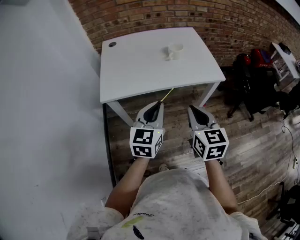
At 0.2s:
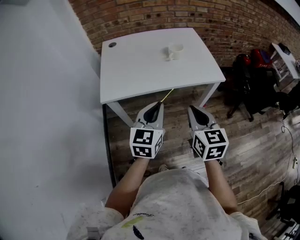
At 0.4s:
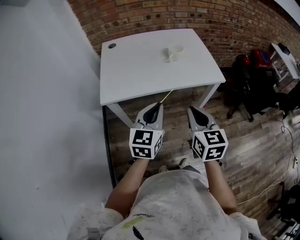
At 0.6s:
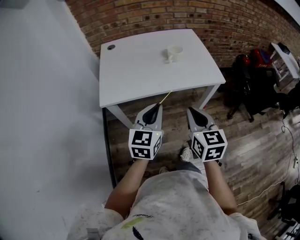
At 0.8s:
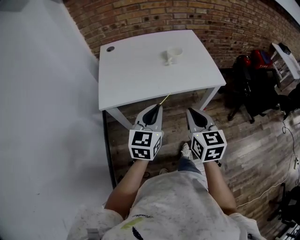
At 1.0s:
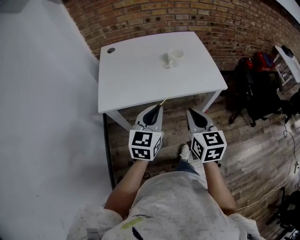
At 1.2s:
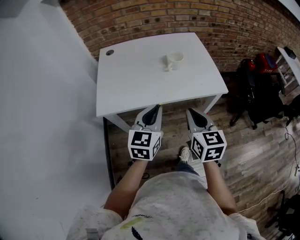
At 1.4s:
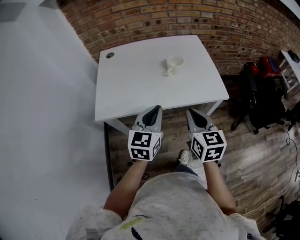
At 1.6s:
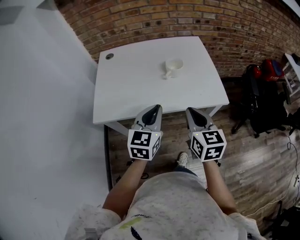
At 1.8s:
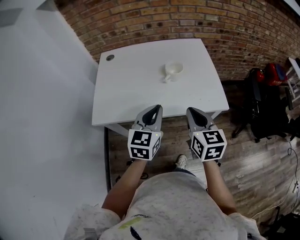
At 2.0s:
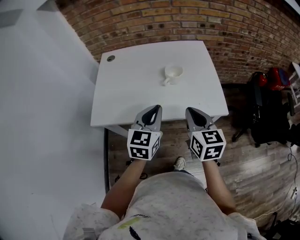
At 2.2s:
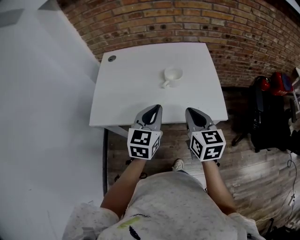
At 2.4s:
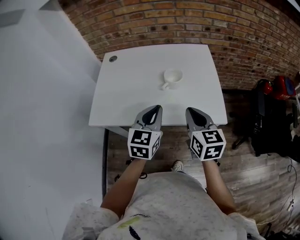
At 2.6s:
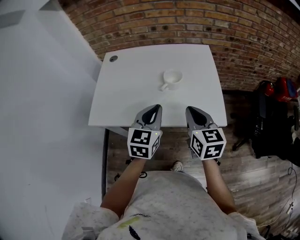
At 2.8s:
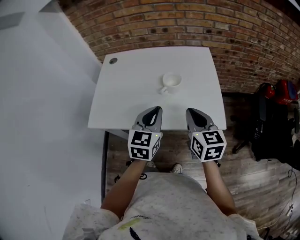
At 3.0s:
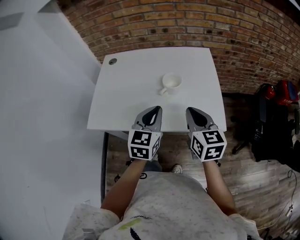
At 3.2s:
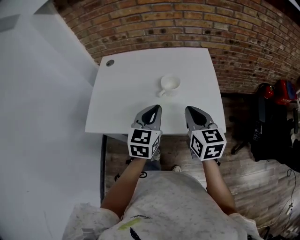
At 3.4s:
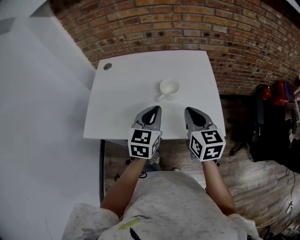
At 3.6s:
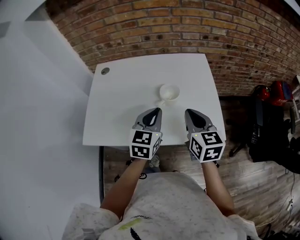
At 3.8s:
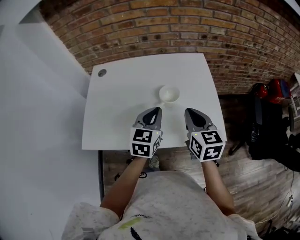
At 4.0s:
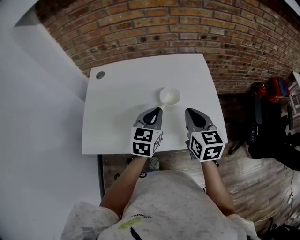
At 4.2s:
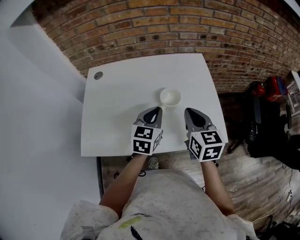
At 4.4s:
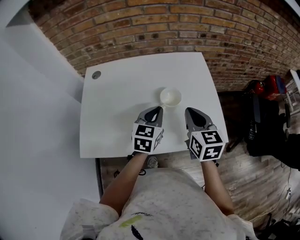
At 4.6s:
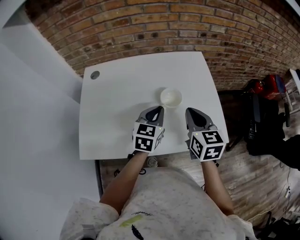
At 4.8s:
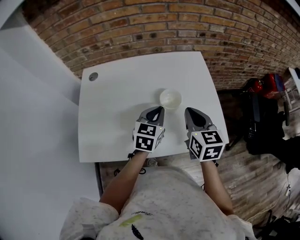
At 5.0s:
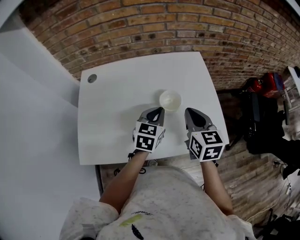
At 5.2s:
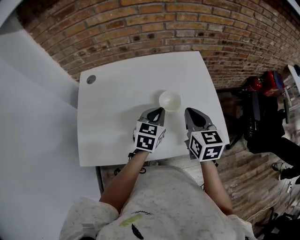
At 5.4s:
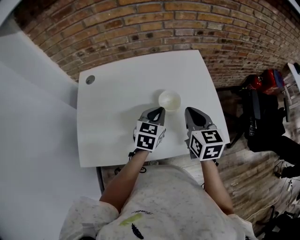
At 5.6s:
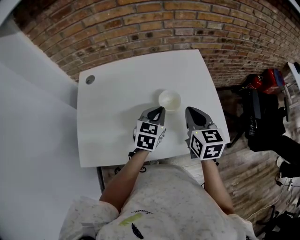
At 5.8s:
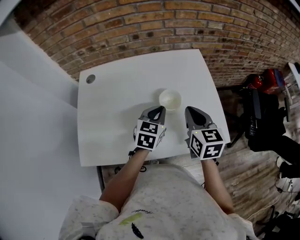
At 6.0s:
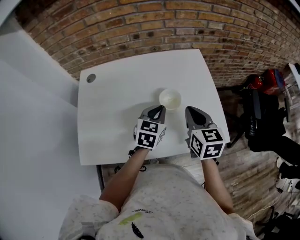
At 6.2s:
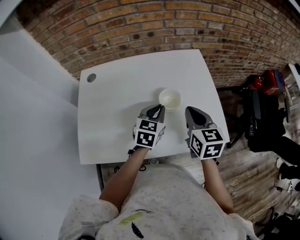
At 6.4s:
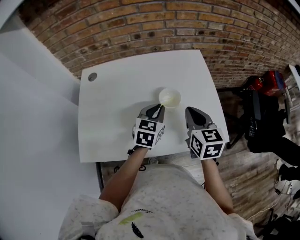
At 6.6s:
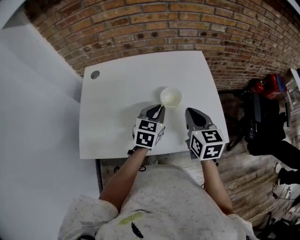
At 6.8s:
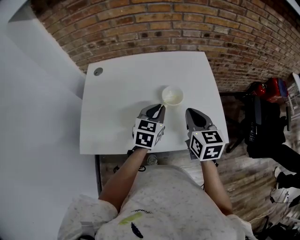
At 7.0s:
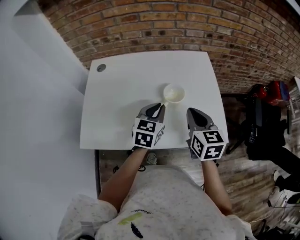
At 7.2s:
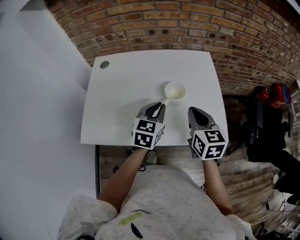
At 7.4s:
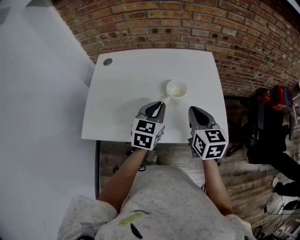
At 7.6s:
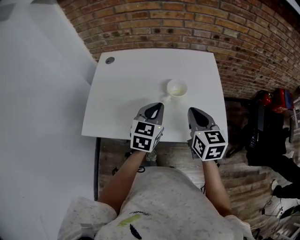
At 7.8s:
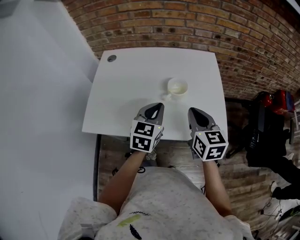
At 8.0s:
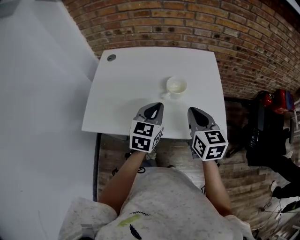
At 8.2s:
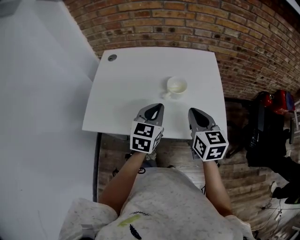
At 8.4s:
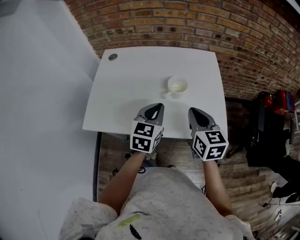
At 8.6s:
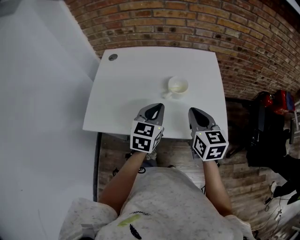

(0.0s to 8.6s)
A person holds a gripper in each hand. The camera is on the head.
0.0s - 1.4s: Both grippers travel together forward, some 15 cm.
1.4s - 2.8s: Both grippers travel together forward and to the right, some 20 cm.
2.8s - 4.4s: Both grippers travel together forward, about 15 cm.
4.4s - 5.8s: The left gripper changes place by about 5 cm.
5.8s - 7.2s: Both grippers travel together backward, about 5 cm.
7.2s - 8.6s: The left gripper goes about 5 cm backward.

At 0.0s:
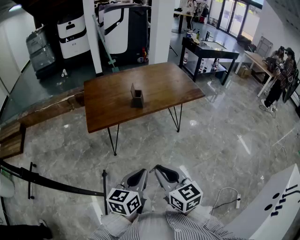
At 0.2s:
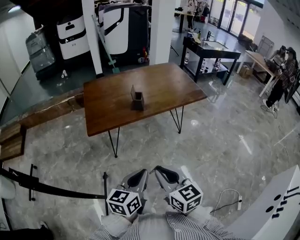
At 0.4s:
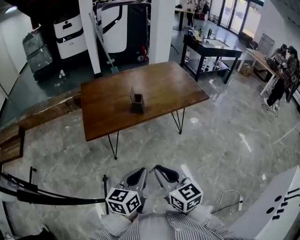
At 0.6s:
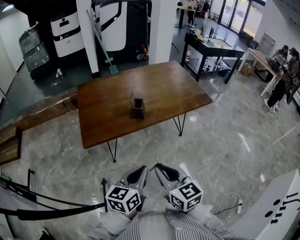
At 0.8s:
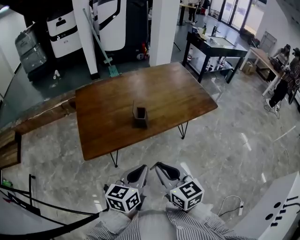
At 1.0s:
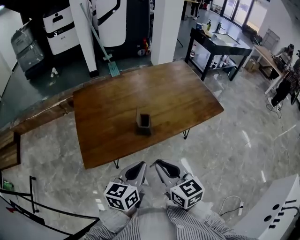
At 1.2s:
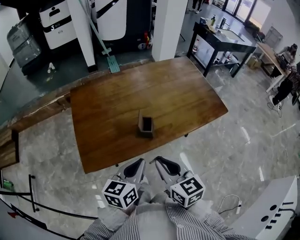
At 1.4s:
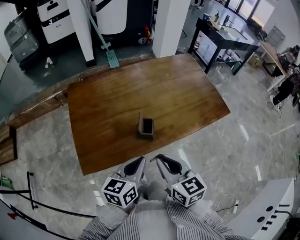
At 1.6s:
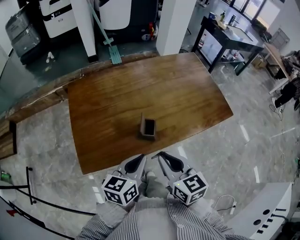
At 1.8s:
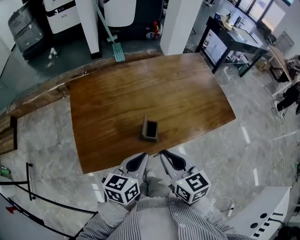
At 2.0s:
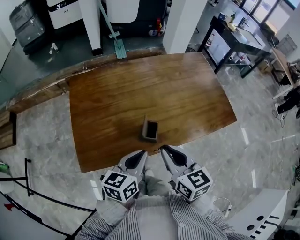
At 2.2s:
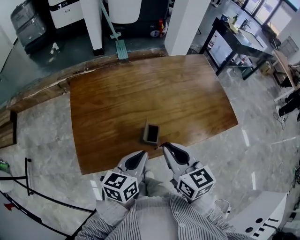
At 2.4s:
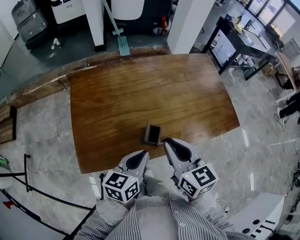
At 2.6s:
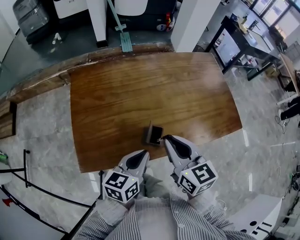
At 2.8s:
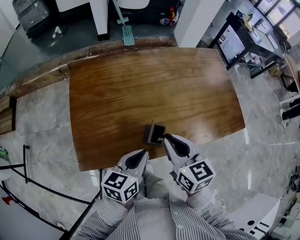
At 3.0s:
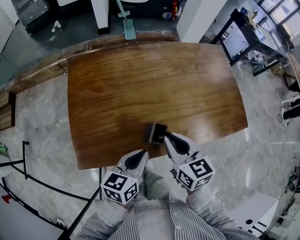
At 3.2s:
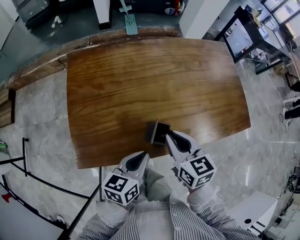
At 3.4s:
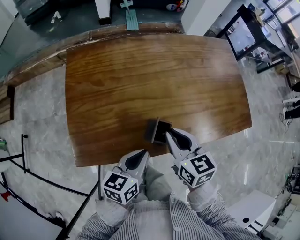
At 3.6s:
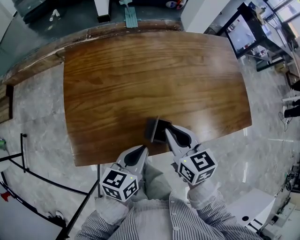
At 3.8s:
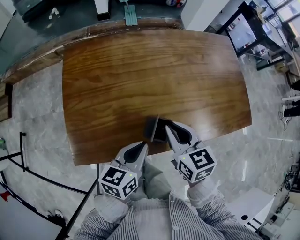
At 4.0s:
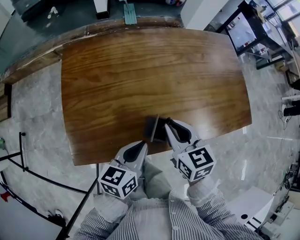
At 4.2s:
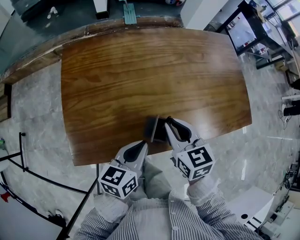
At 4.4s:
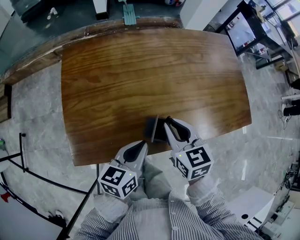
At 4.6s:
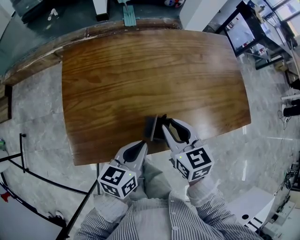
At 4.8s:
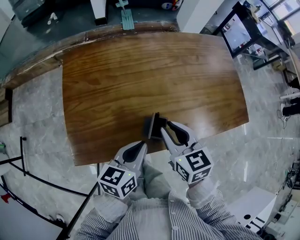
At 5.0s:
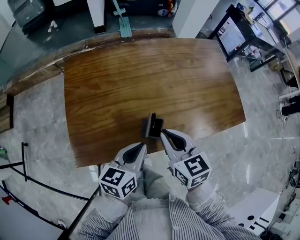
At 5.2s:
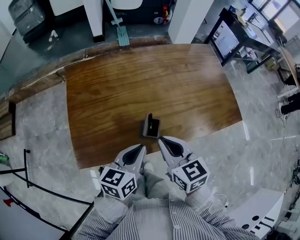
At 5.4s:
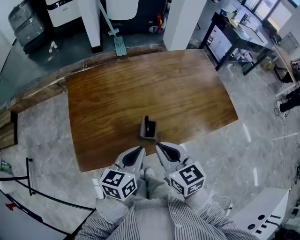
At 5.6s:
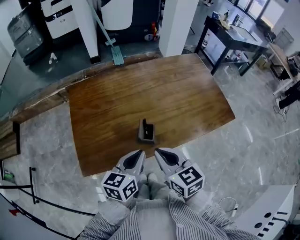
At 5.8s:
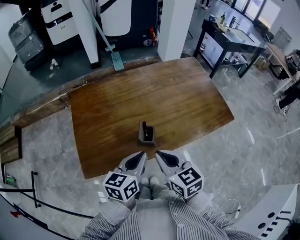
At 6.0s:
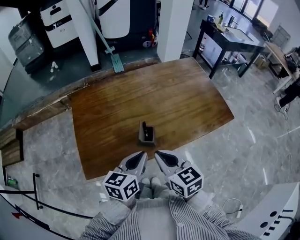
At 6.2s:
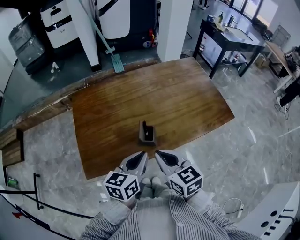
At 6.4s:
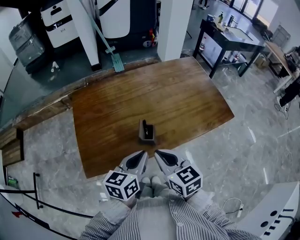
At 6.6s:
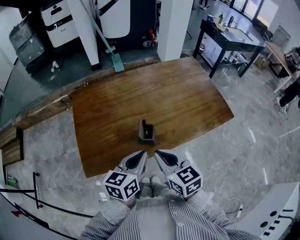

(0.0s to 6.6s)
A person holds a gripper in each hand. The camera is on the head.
0.0s - 1.6s: Both grippers move forward, some 40 cm.
1.6s - 3.2s: The right gripper heads forward and downward, covering some 15 cm. Meanwhile the left gripper travels downward by roughly 5 cm.
3.2s - 5.0s: The grippers move only a little.
5.0s - 6.6s: The right gripper goes some 10 cm backward. The left gripper moves upward, approximately 5 cm.

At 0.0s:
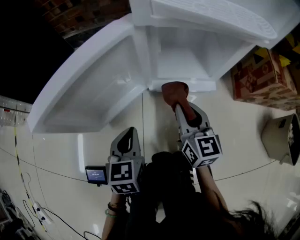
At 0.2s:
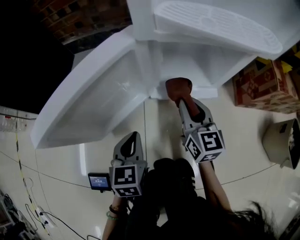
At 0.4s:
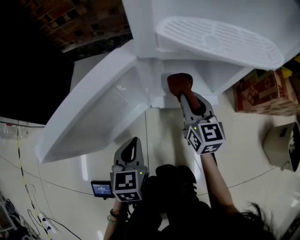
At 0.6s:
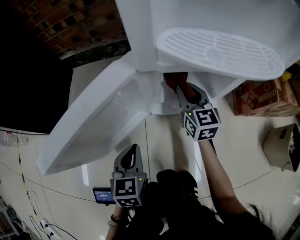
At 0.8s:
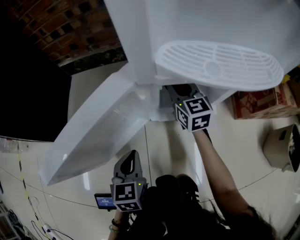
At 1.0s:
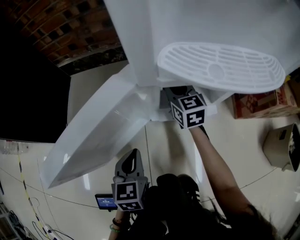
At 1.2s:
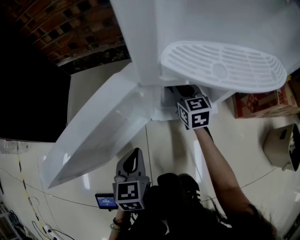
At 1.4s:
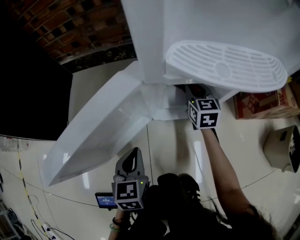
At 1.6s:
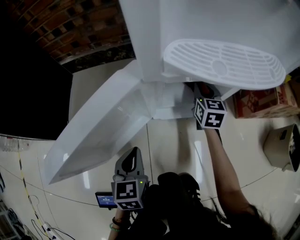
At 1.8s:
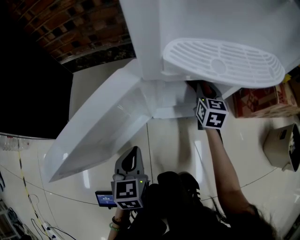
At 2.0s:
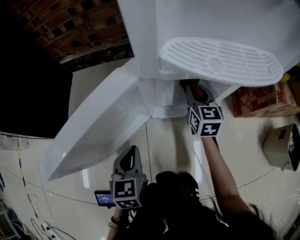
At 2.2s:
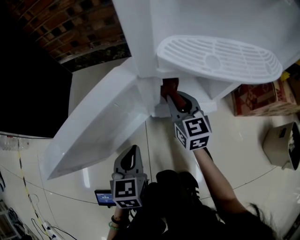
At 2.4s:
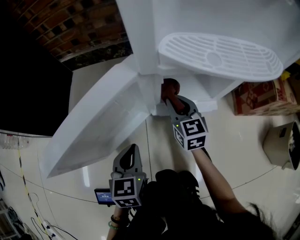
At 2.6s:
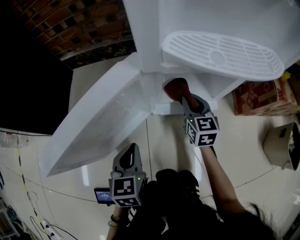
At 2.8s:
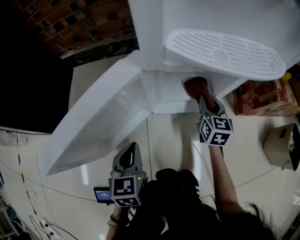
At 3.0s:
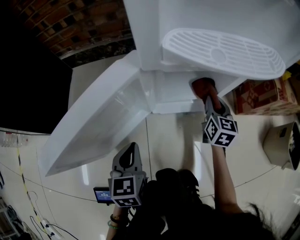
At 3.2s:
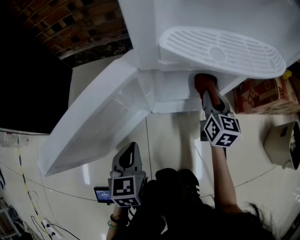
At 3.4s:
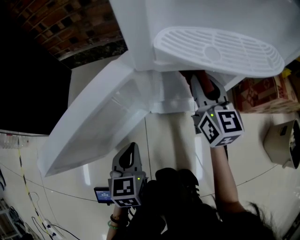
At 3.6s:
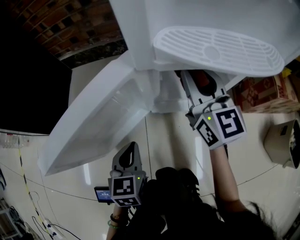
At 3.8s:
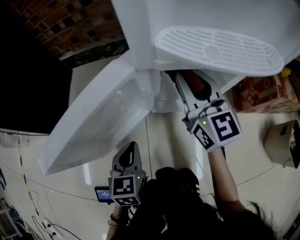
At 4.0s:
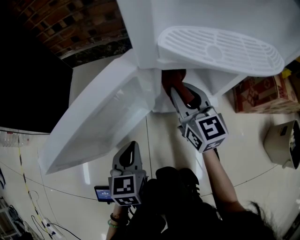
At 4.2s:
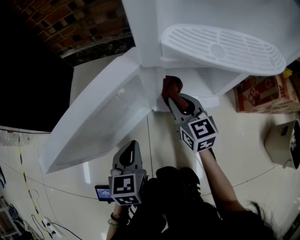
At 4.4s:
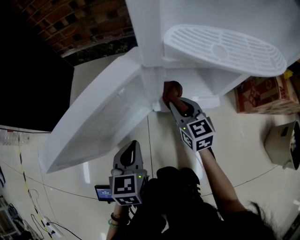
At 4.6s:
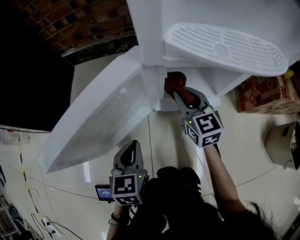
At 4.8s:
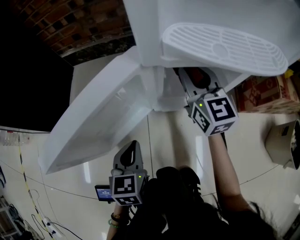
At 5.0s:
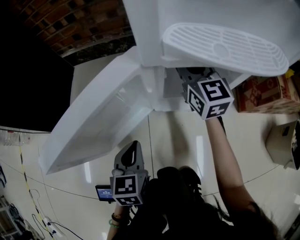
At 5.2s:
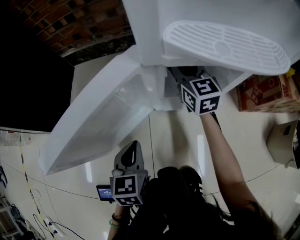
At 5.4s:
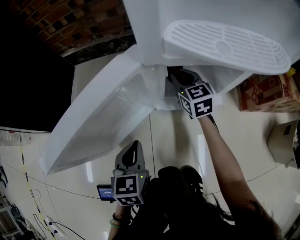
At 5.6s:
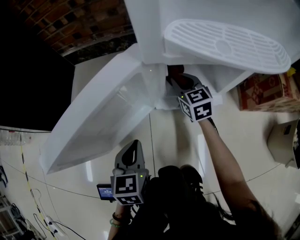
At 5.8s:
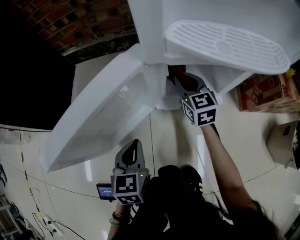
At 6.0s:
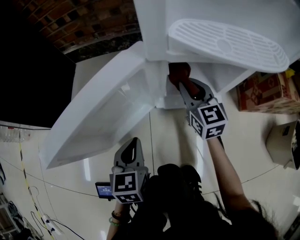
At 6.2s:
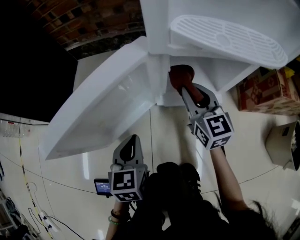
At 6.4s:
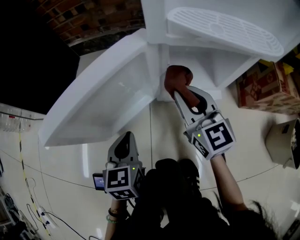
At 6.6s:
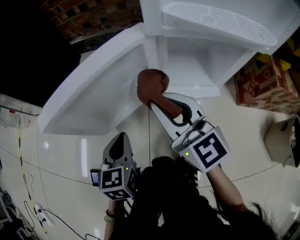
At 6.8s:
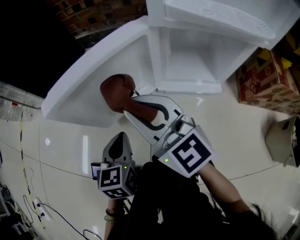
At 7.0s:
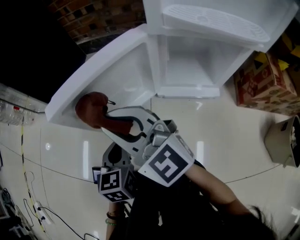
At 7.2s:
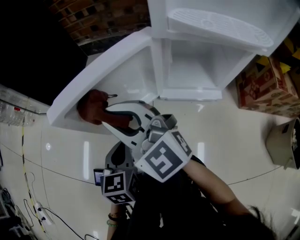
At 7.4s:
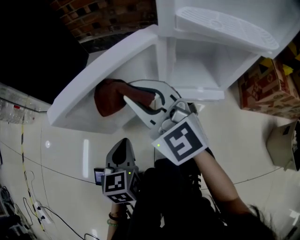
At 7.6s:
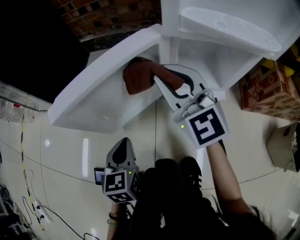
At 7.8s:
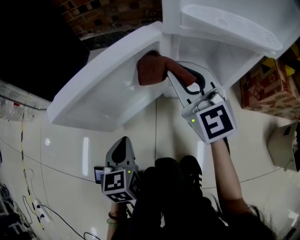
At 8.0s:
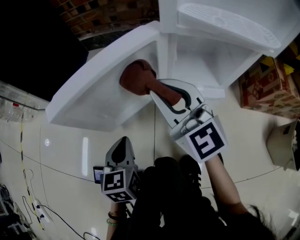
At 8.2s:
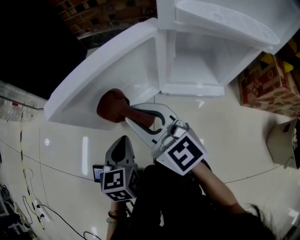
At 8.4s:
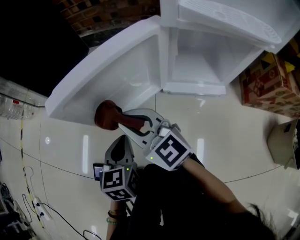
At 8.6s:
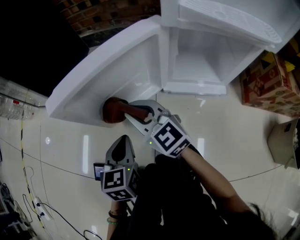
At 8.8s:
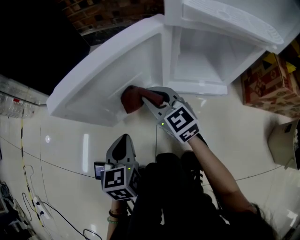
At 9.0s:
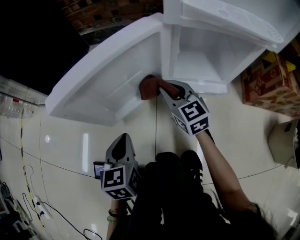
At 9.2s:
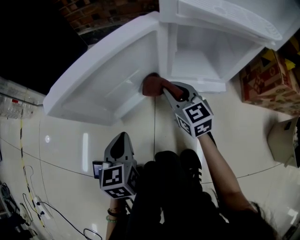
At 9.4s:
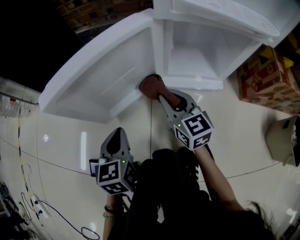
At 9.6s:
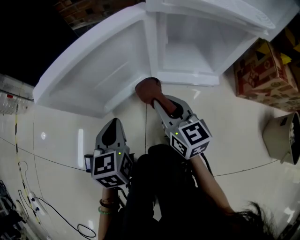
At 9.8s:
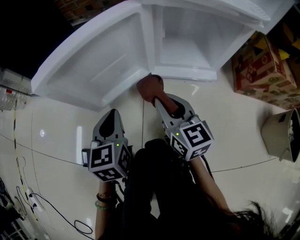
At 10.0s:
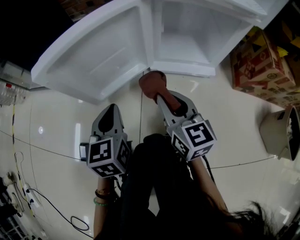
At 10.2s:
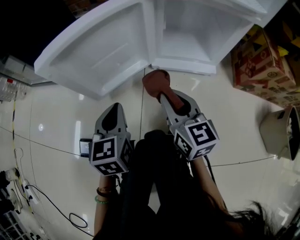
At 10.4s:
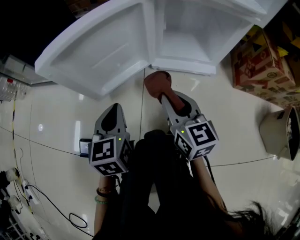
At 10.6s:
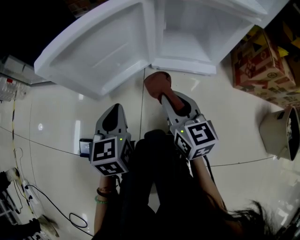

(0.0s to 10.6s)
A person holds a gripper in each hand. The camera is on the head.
0.0s - 1.6s: The right gripper shifts approximately 20 cm forward and to the right, and turns by approximately 20 degrees.
1.6s - 3.0s: The right gripper heads backward, covering about 10 cm, and reaches approximately 10 cm to the left, then returns.
3.0s - 4.6s: The right gripper moves up and down over approximately 20 cm, changing direction 2 times, and changes its angle by about 30 degrees.
4.6s - 6.0s: The right gripper goes up and down, roughly 15 cm each way, reversing 2 times.
6.0s - 7.6s: The left gripper shifts by some 10 cm; the right gripper shifts roughly 15 cm upward, and swivels some 30 degrees.
7.6s - 9.0s: The right gripper moves downward, approximately 15 cm, moves about 15 cm to the left and comes back, and changes its angle by approximately 20 degrees.
9.0s - 10.6s: The right gripper shifts approximately 15 cm backward.
